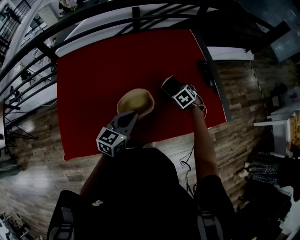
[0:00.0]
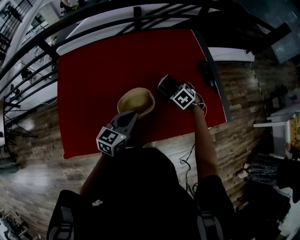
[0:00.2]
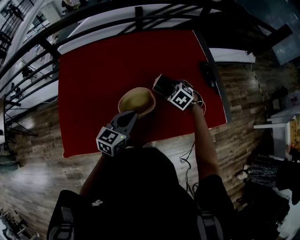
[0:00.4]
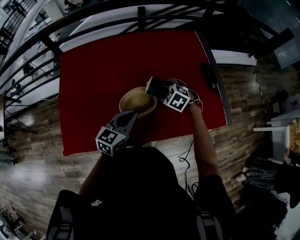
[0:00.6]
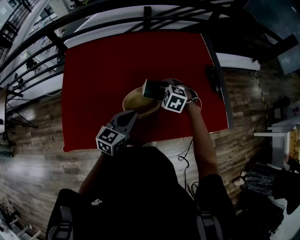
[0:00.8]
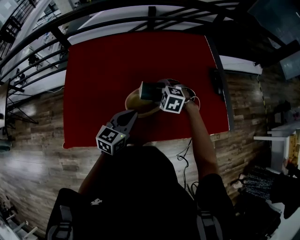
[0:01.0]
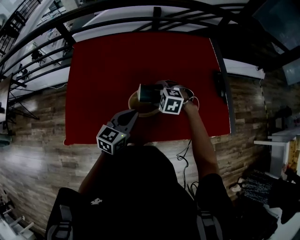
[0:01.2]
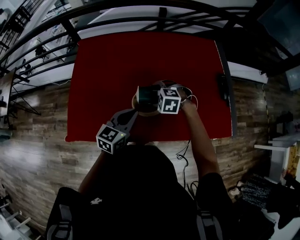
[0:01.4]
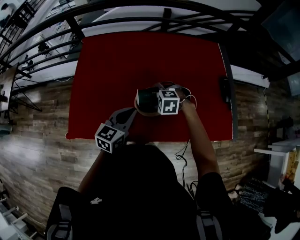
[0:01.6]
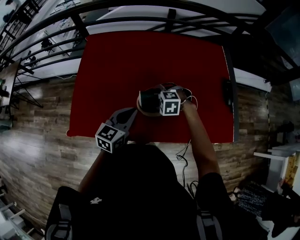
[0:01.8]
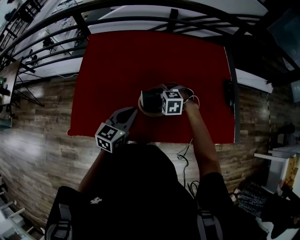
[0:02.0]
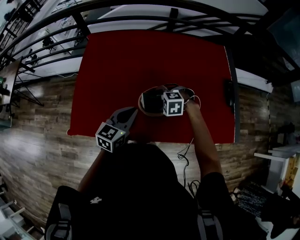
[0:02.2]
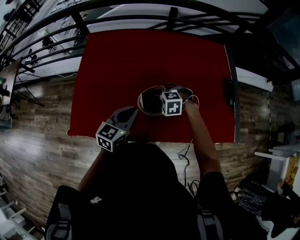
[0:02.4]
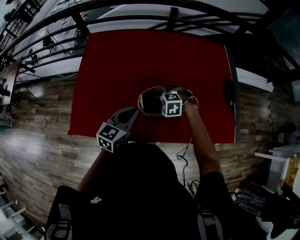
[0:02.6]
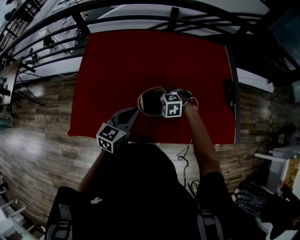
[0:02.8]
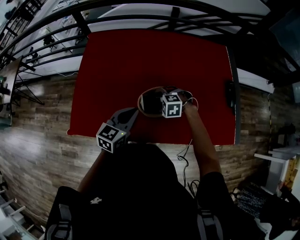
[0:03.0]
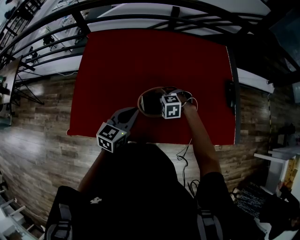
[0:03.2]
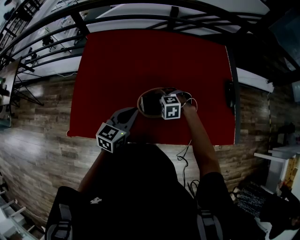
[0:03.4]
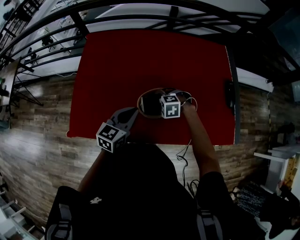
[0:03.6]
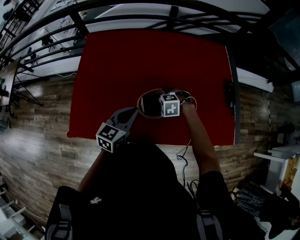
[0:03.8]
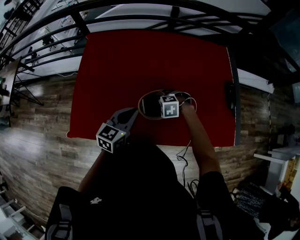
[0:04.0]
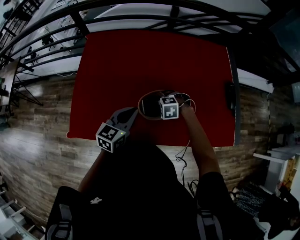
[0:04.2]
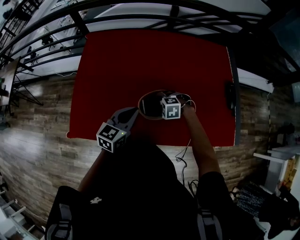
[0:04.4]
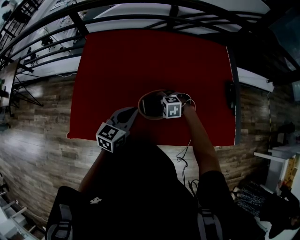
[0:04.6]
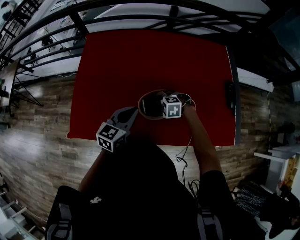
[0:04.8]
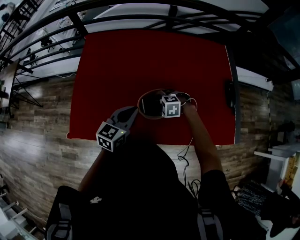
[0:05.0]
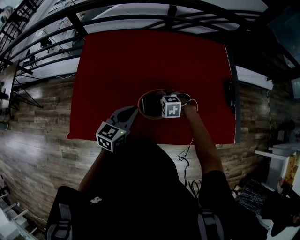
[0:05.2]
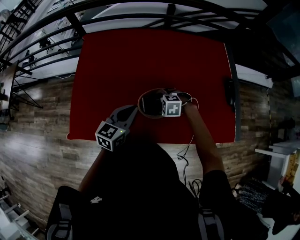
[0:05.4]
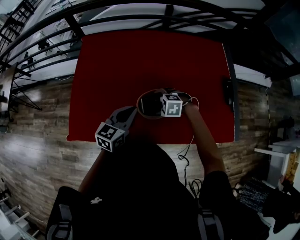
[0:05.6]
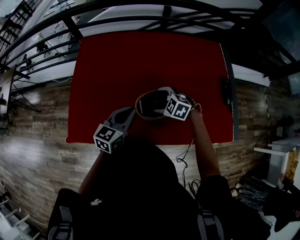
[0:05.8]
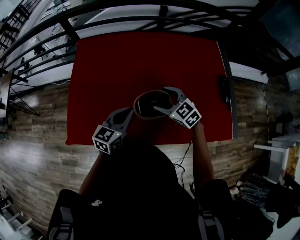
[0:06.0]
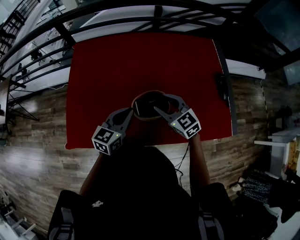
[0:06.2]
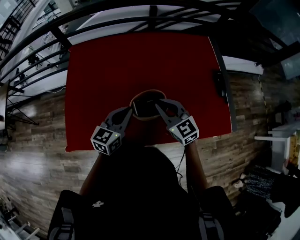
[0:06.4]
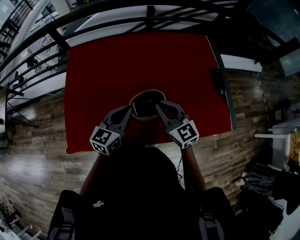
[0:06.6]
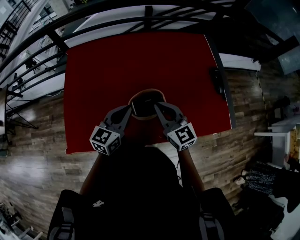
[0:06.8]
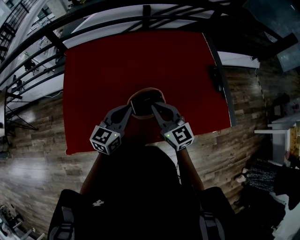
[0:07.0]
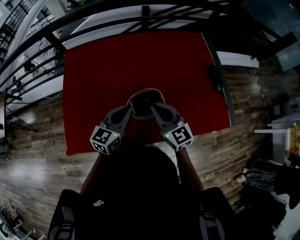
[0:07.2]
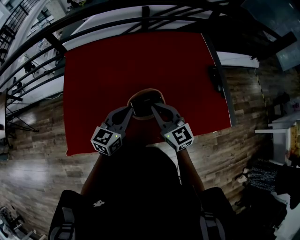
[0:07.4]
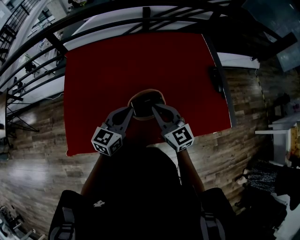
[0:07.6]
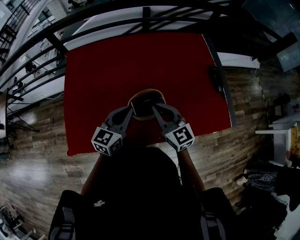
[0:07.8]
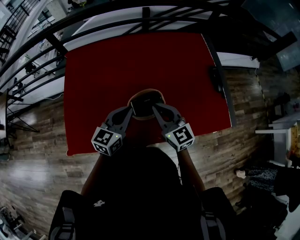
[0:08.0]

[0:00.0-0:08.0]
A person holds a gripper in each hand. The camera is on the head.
0:00.0 to 0:01.6: The right gripper shifts by approximately 25 cm, and rolls counterclockwise, seen from behind, by roughly 60 degrees. Meanwhile the left gripper ends up some 10 cm from where it was.
0:01.6 to 0:03.2: The right gripper shifts roughly 5 cm downward.
0:03.2 to 0:04.8: The grippers make only small movements.
0:04.8 to 0:06.4: The right gripper moves upward, approximately 20 cm, tips its fingers upward by about 50 degrees, and closes up.
0:06.4 to 0:08.0: The grippers stay close to where they were, moving slightly.

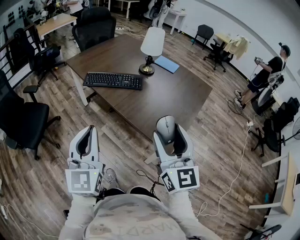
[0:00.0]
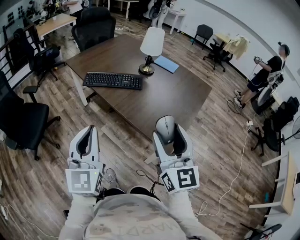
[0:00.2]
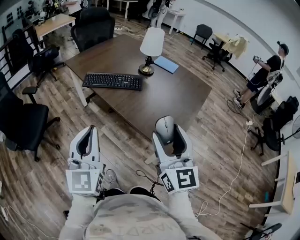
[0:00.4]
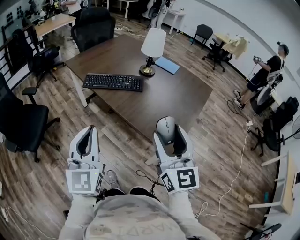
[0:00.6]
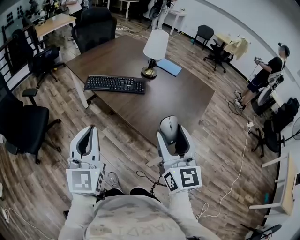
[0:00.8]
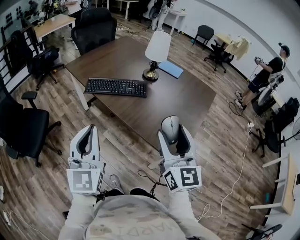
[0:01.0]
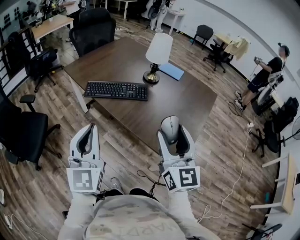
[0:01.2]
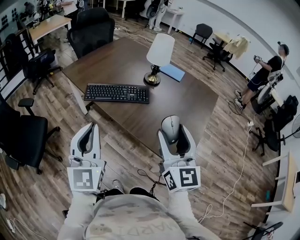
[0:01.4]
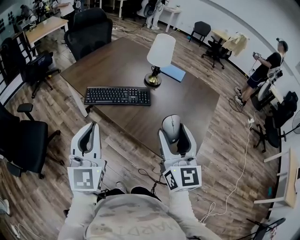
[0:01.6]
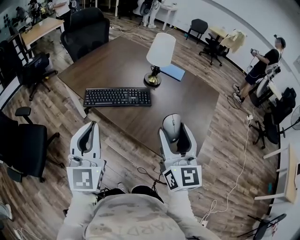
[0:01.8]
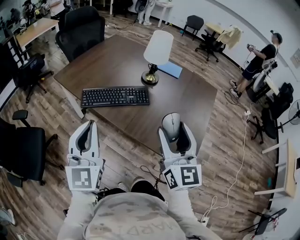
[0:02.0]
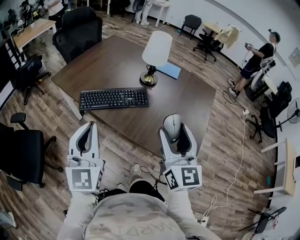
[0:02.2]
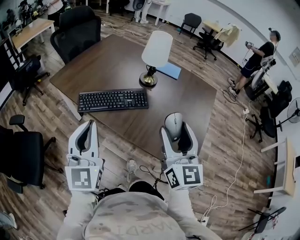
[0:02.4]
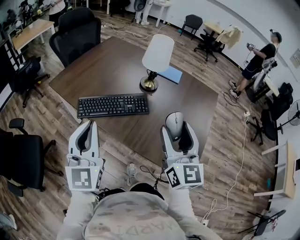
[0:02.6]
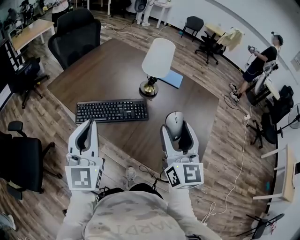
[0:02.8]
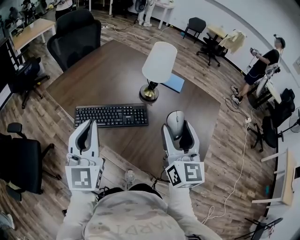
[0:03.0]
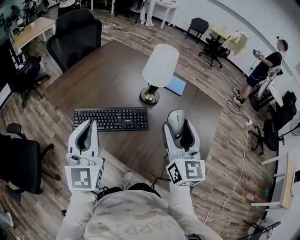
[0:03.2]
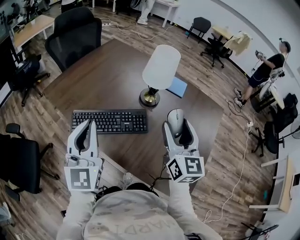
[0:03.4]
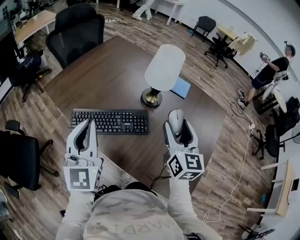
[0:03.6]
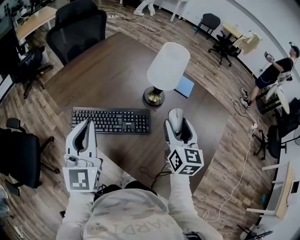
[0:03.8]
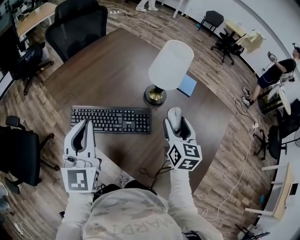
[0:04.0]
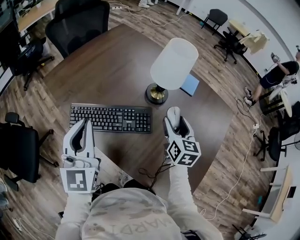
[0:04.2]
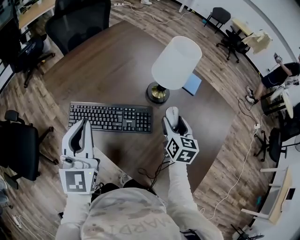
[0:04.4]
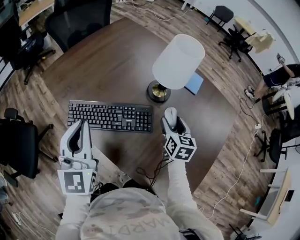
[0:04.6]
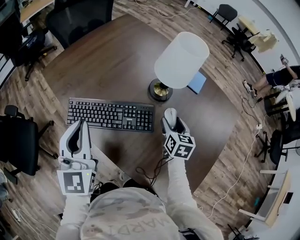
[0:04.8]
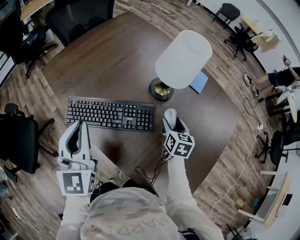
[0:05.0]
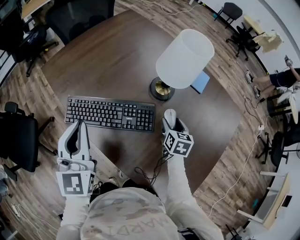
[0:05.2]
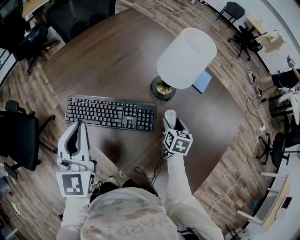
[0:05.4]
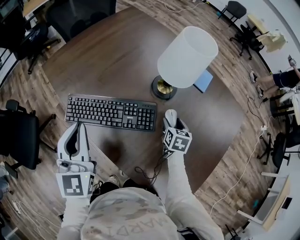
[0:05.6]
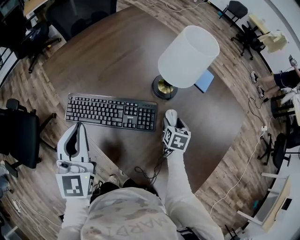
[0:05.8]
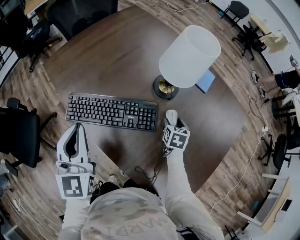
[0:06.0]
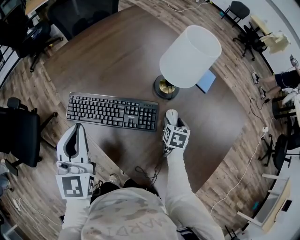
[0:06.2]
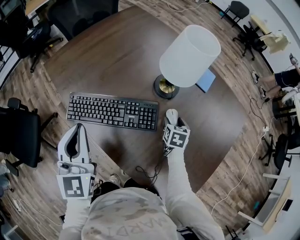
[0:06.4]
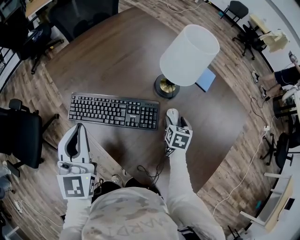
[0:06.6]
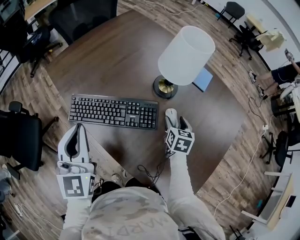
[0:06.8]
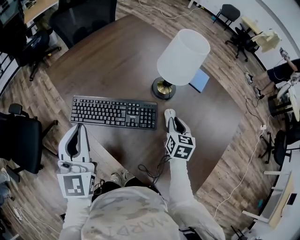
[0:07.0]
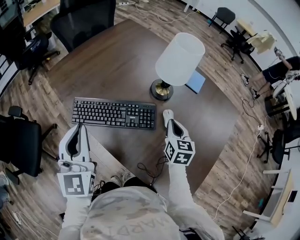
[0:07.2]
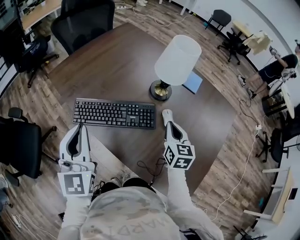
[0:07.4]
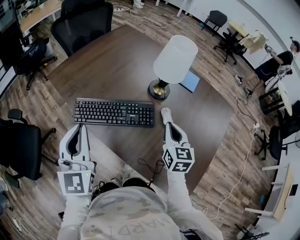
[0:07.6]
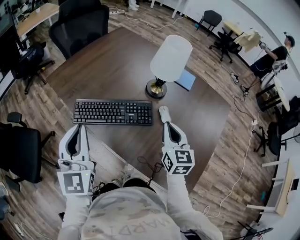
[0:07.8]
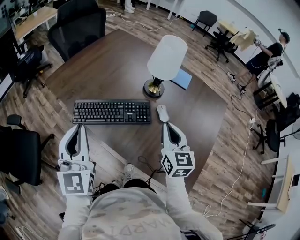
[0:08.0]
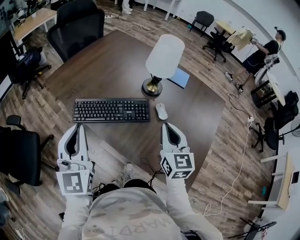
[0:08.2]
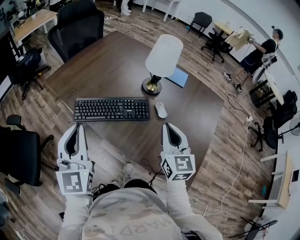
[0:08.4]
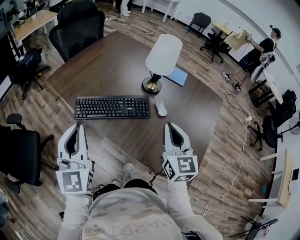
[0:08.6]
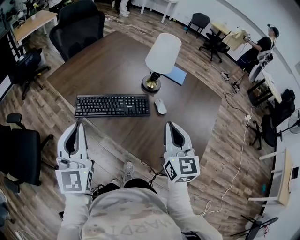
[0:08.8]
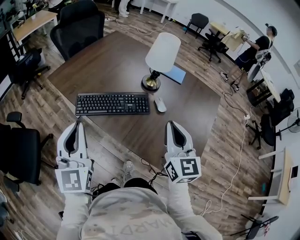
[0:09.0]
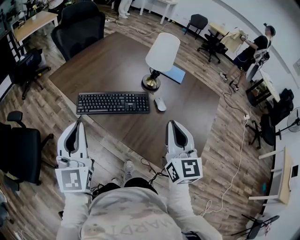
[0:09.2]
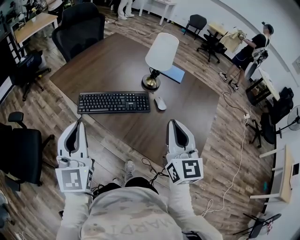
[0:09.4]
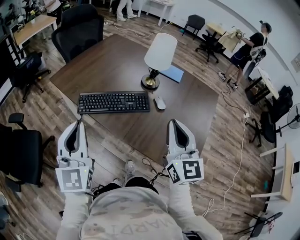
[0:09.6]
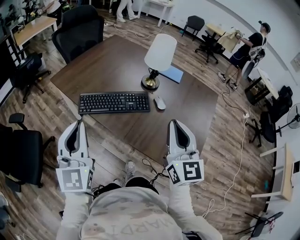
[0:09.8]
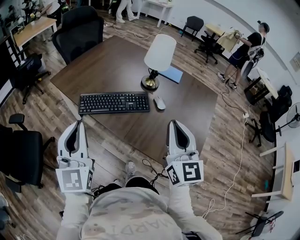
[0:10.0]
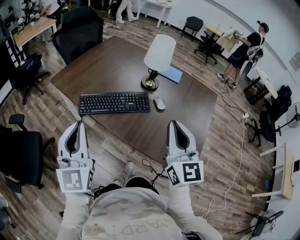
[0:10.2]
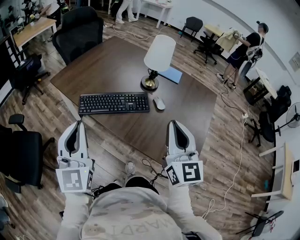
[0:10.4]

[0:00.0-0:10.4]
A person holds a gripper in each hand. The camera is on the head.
0:00.0 to 0:01.4: Both grippers move forward, about 15 cm.
0:01.4 to 0:03.0: Both grippers move forward, about 20 cm.
0:03.0 to 0:04.4: The left gripper heads forward and downward, covering about 10 cm. The right gripper is displaced downward and forward by roughly 30 cm, and swivels roughly 30 degrees.
0:04.4 to 0:06.0: The left gripper shifts by roughly 5 cm; the right gripper moves downward, some 15 cm, and changes its angle by some 20 degrees.
0:06.0 to 0:07.4: The right gripper moves upward and backward, approximately 20 cm, rotates some 30 degrees, and closes up. Meanwhile the left gripper shifts approximately 5 cm backward.
0:07.4 to 0:09.0: The left gripper is displaced backward by about 10 cm. Meanwhile the right gripper heads backward and upward, covering about 25 cm, and changes its angle by some 20 degrees.
0:09.0 to 0:10.4: The right gripper heads backward, covering roughly 5 cm; the left gripper ends up roughly 5 cm from where it was.

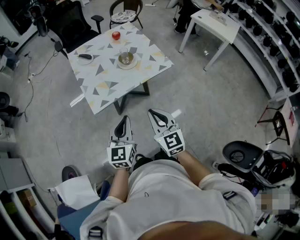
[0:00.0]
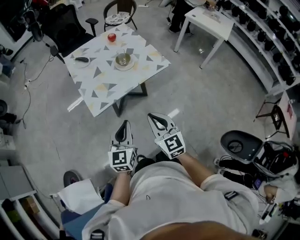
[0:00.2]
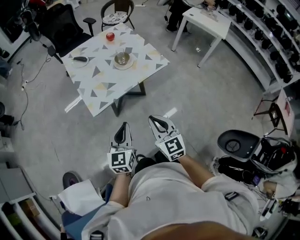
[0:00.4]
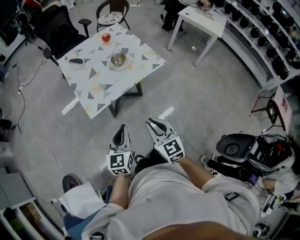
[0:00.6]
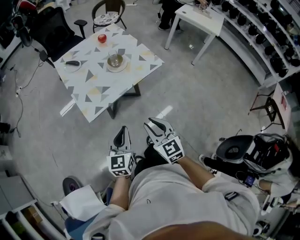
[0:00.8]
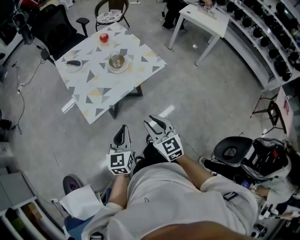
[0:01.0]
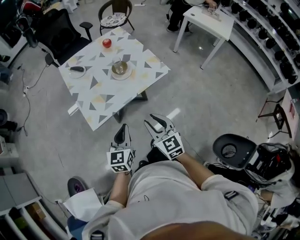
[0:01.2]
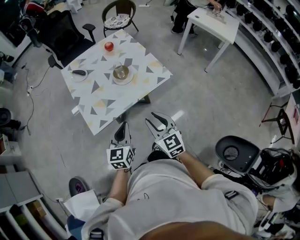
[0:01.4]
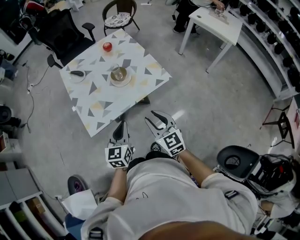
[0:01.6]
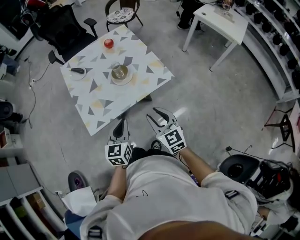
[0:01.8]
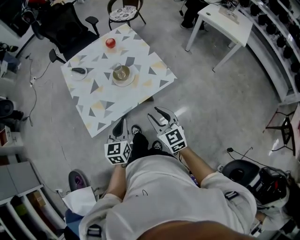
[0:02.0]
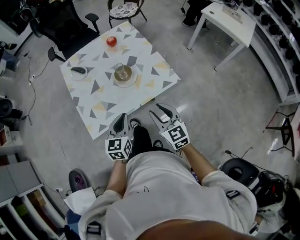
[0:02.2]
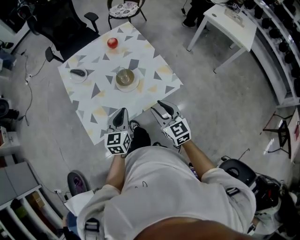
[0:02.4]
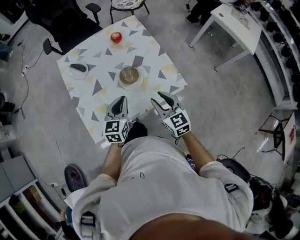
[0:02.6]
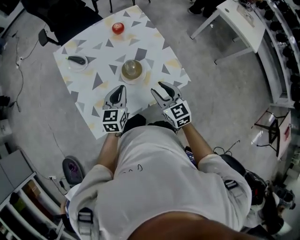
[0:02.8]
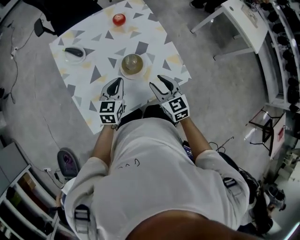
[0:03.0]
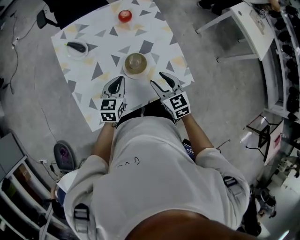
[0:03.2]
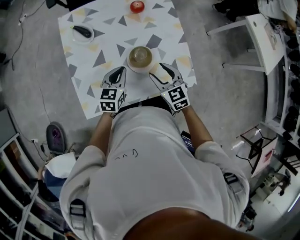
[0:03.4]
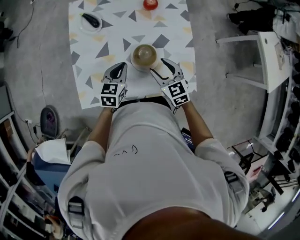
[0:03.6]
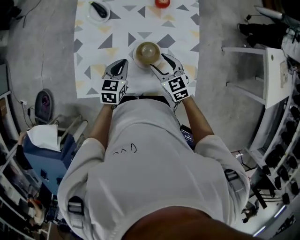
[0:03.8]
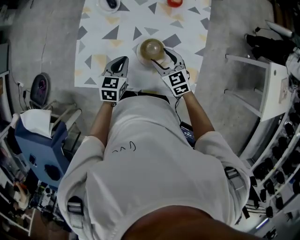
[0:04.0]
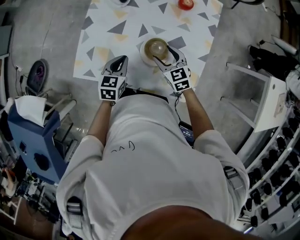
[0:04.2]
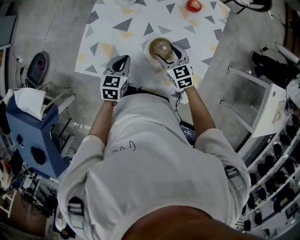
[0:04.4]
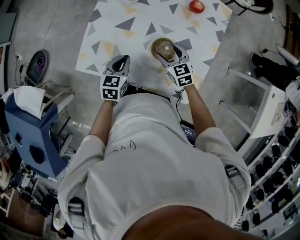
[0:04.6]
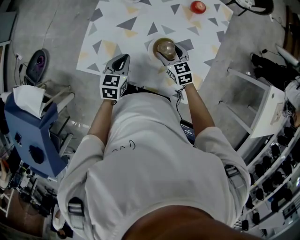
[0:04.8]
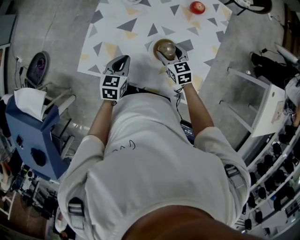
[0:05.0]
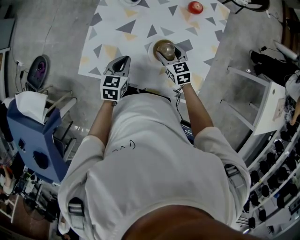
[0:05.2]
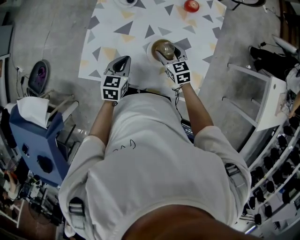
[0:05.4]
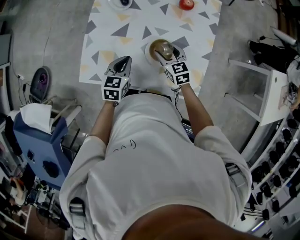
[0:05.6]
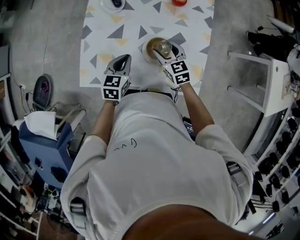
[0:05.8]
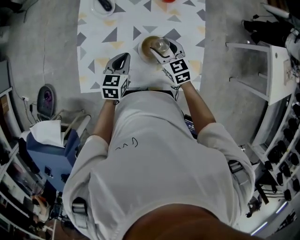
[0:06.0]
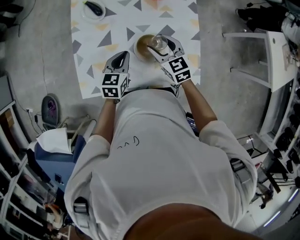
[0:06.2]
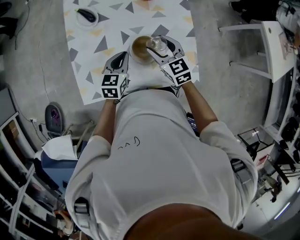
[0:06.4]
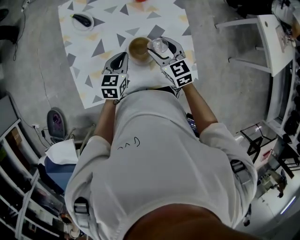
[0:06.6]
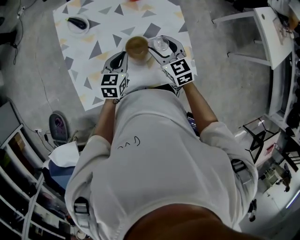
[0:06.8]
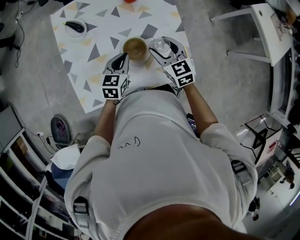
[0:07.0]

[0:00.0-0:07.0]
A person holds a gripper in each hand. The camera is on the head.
0:00.0 to 0:01.4: Both grippers move forward, roughly 10 cm. The right gripper opens its fingers.
0:01.4 to 0:02.8: The grippers both shift forward by approximately 30 cm.
0:02.8 to 0:04.2: The left gripper is displaced downward by some 10 cm, and swivels approximately 40 degrees. Meanwhile the right gripper moves approximately 20 cm, swivels roughly 40 degrees, and opens.
0:04.2 to 0:05.6: The grippers stay close to where they were, moving slightly.
0:05.6 to 0:07.0: The right gripper goes roughly 15 cm to the right and upward, and changes its angle by roughly 20 degrees; the left gripper travels to the right by about 10 cm, and turns by roughly 30 degrees.
